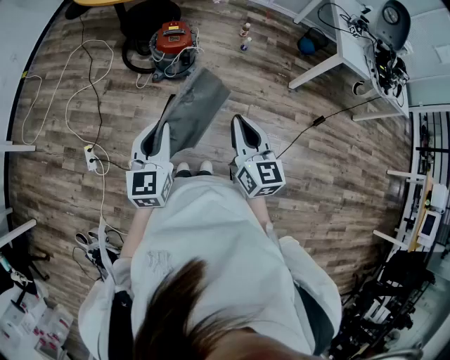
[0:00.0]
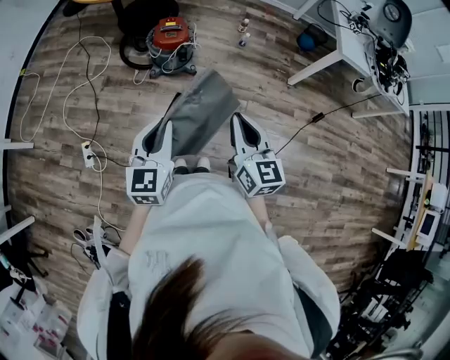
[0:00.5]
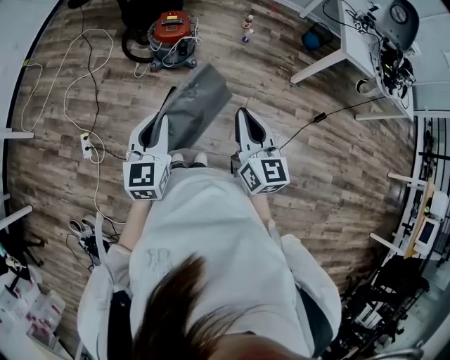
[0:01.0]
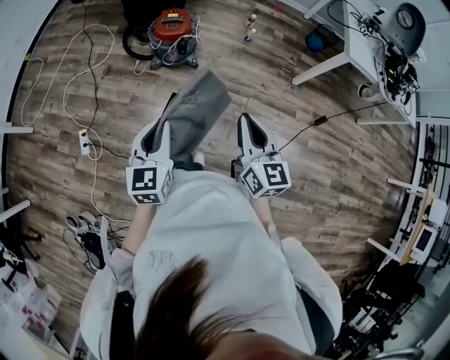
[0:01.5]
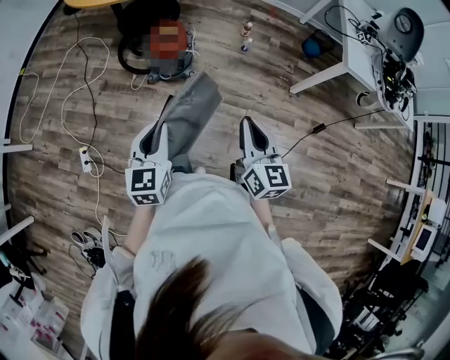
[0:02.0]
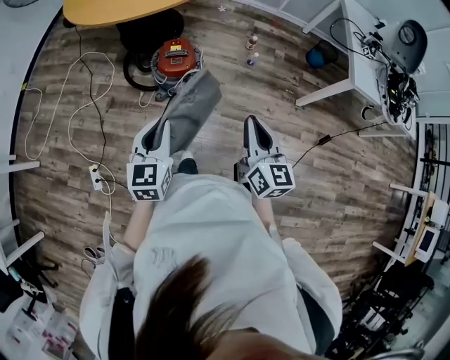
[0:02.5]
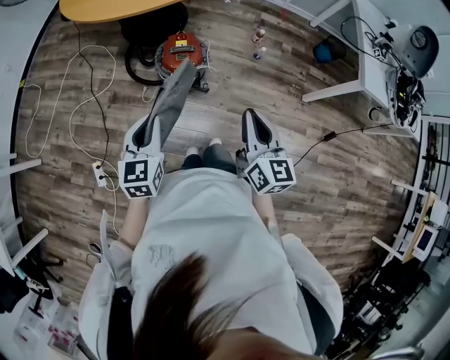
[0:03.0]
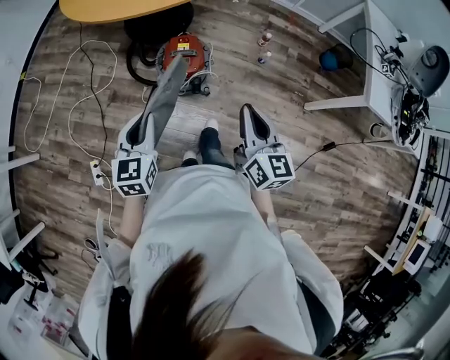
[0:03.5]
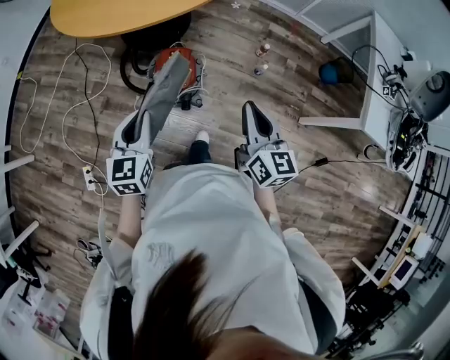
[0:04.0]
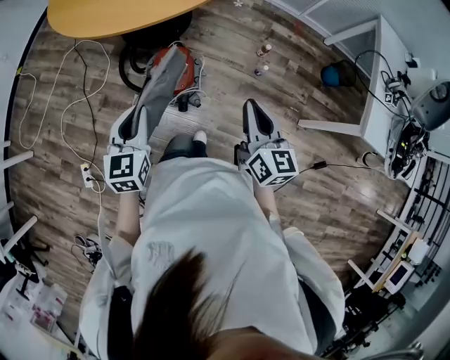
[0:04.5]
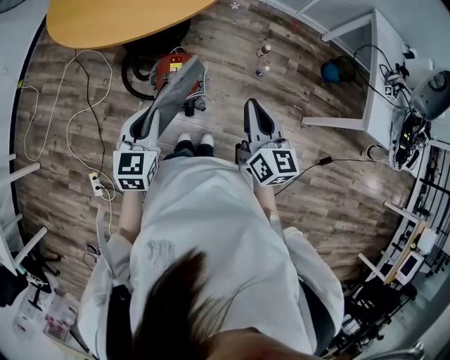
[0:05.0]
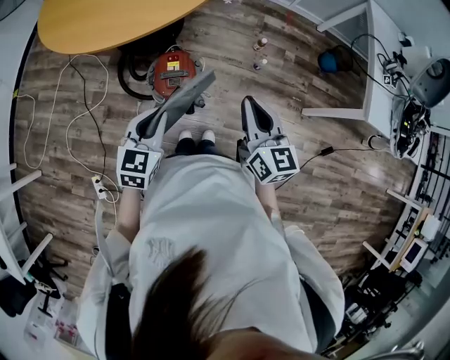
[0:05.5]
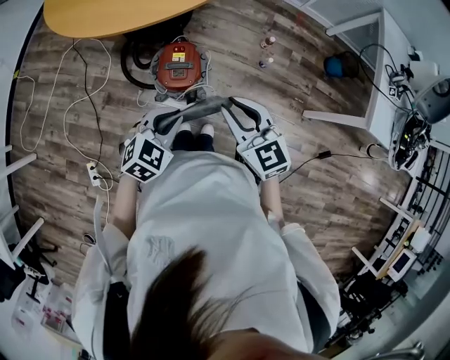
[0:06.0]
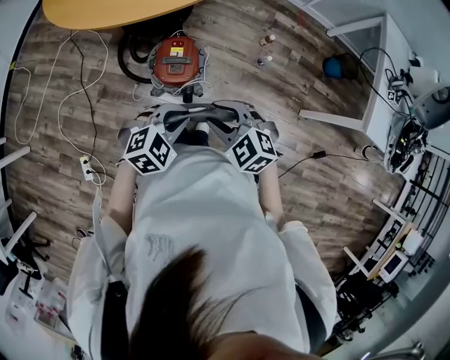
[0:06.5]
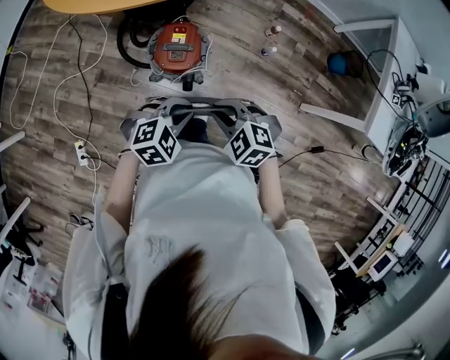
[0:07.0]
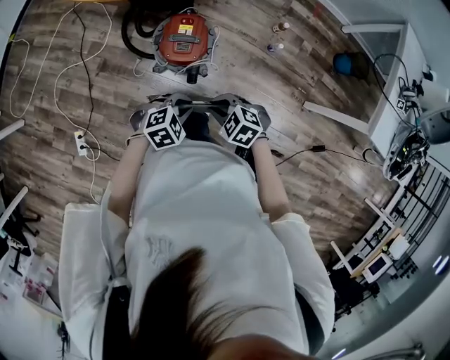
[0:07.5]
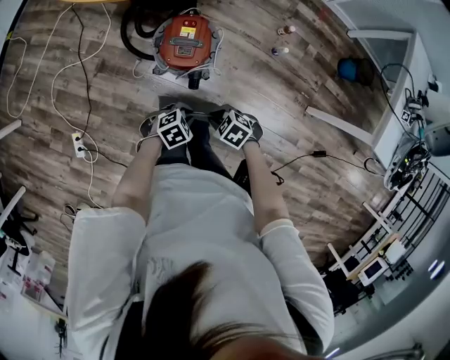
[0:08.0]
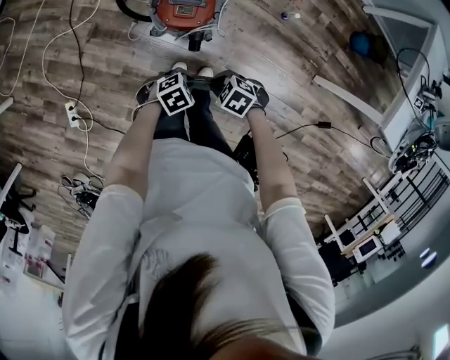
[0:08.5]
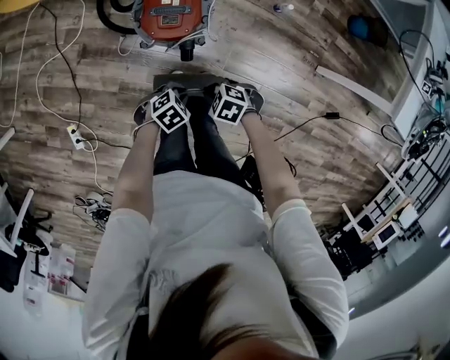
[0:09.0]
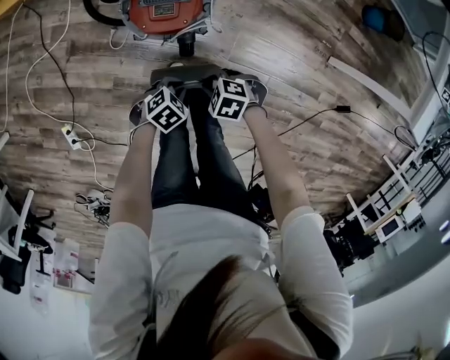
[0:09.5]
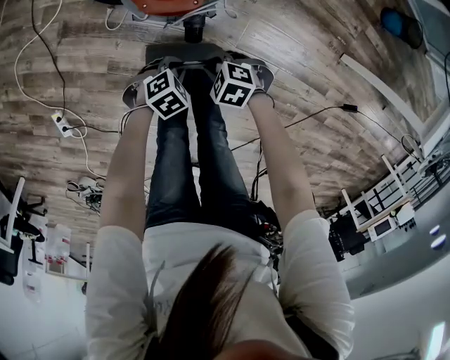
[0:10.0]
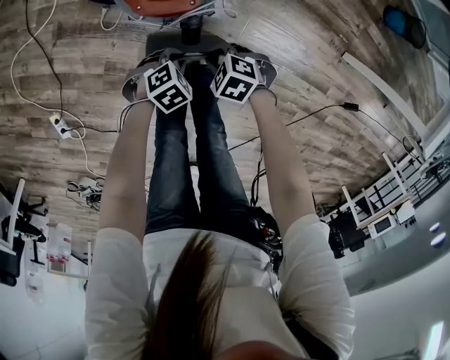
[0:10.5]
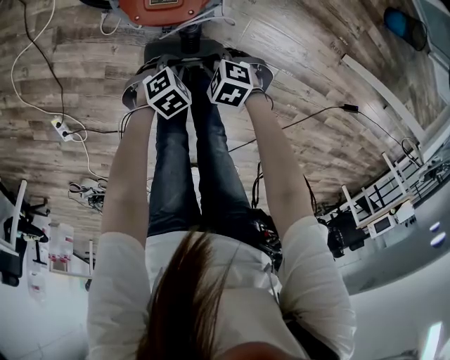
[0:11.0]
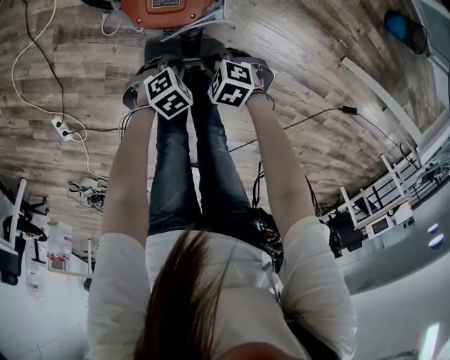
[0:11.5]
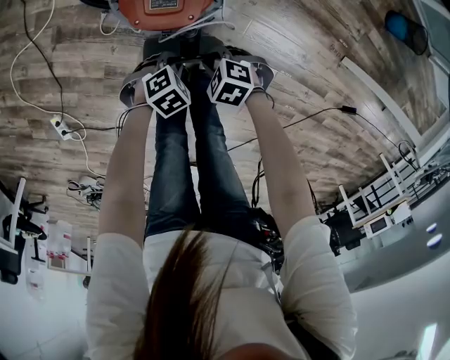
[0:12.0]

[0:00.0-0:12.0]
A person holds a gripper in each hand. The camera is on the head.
0:00.0 to 0:02.0: The grippers both shift forward and to the right by about 10 cm.
0:02.0 to 0:04.0: The two grippers go about 35 cm forward.
0:04.0 to 0:06.0: The left gripper heads to the right and downward, covering roughly 10 cm, and changes its angle by about 50 degrees. The right gripper travels to the left by about 10 cm, and swivels approximately 40 degrees.
0:06.0 to 0:08.0: The grippers both shift downward by roughly 30 cm. The left gripper rotates approximately 30 degrees, while the right gripper angles its fingers downward, by roughly 40 degrees.
0:08.0 to 0:10.0: Both grippers travel together downward, some 20 cm.
0:10.0 to 0:12.0: The right gripper ends up approximately 5 cm from where it was. The left gripper changes place by roughly 5 cm.

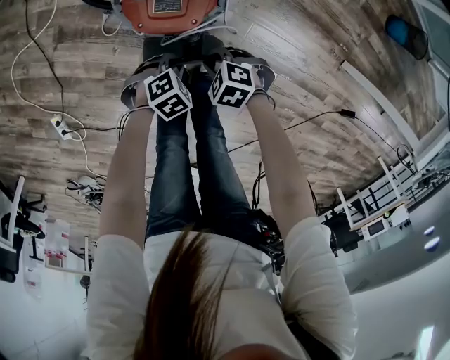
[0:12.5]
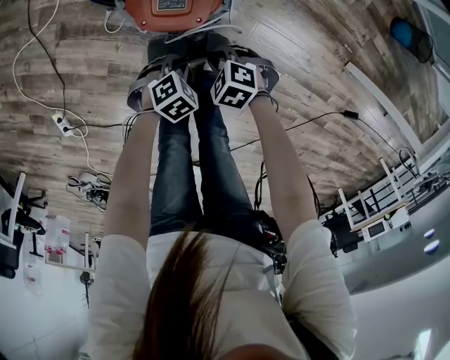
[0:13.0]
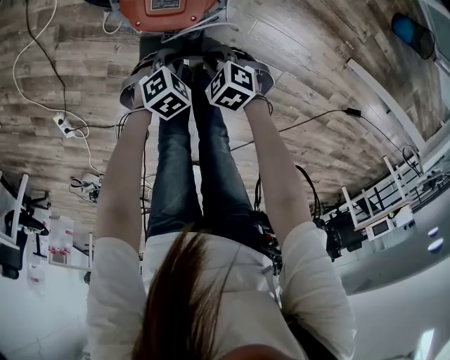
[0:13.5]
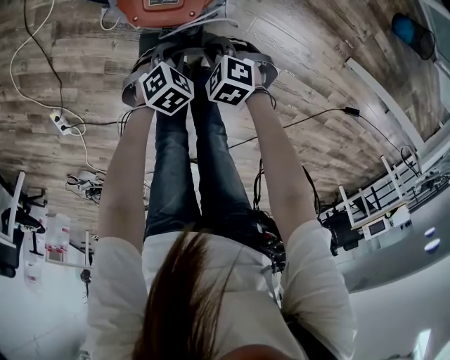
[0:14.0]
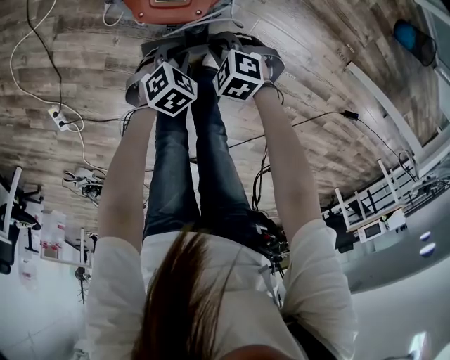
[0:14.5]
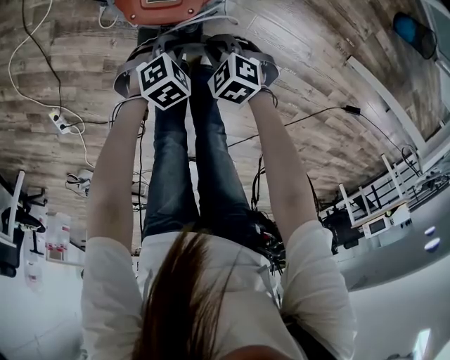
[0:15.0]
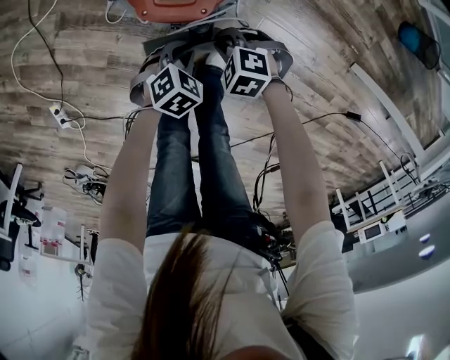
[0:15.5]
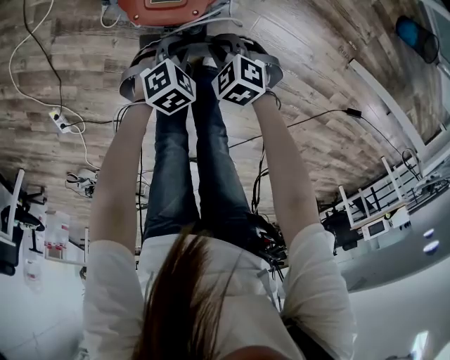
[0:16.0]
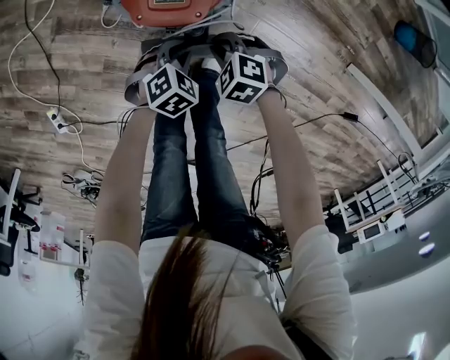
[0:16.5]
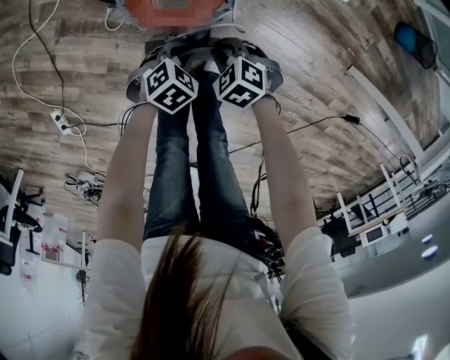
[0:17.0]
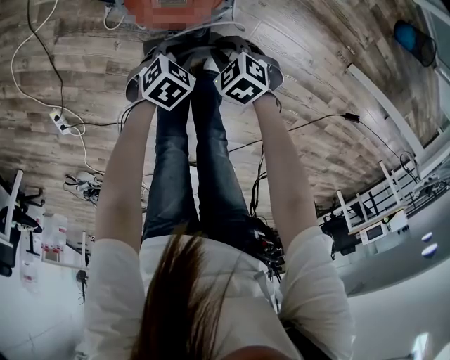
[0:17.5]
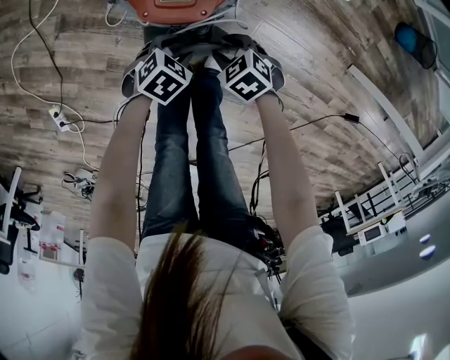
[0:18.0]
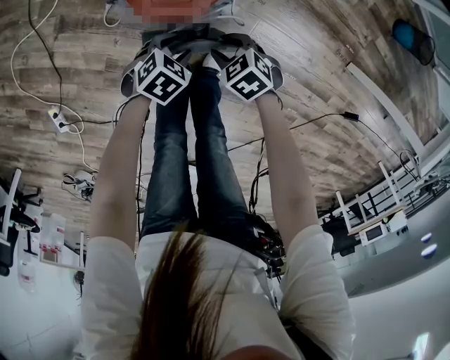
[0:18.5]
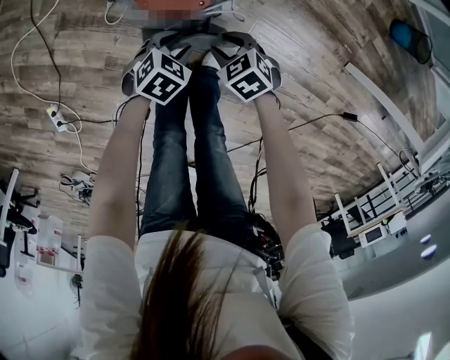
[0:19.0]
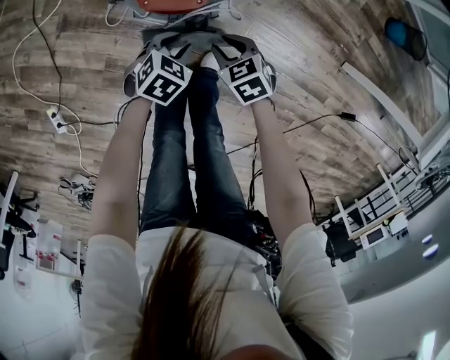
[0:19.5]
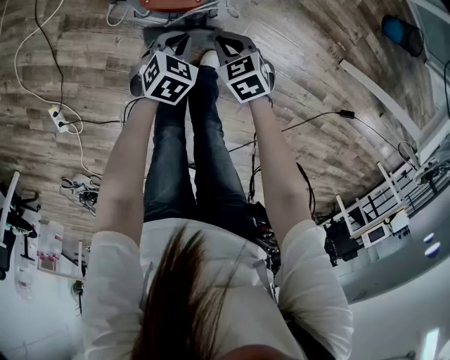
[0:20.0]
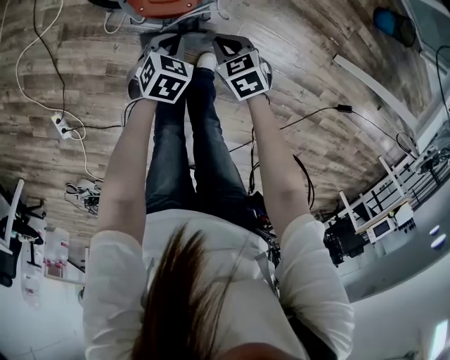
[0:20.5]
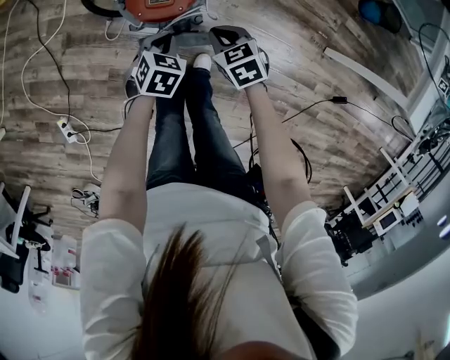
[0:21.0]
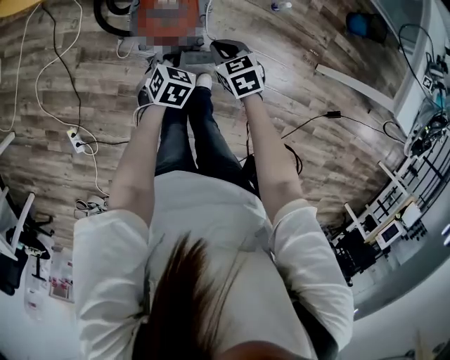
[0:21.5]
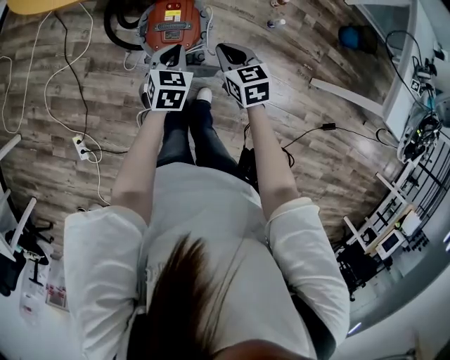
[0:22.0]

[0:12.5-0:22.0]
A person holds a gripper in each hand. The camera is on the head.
0:14.5 to 0:16.5: The grippers move only a little.
0:16.5 to 0:18.0: The right gripper changes its angle by about 20 degrees, and opens its fingers, while the left gripper opens its fingers.
0:18.0 to 0:20.0: Both grippers move upward, roughly 5 cm. The right gripper closes; the left gripper closes.
0:20.0 to 0:22.0: The two grippers go approximately 25 cm upward. The left gripper changes its angle by about 20 degrees. The right gripper turns by about 30 degrees.

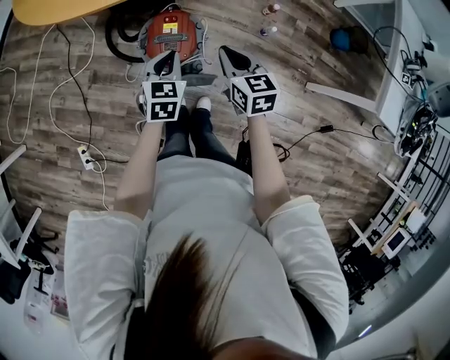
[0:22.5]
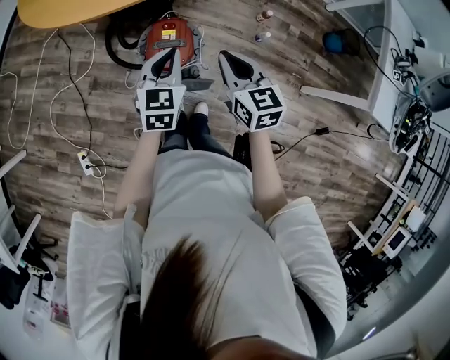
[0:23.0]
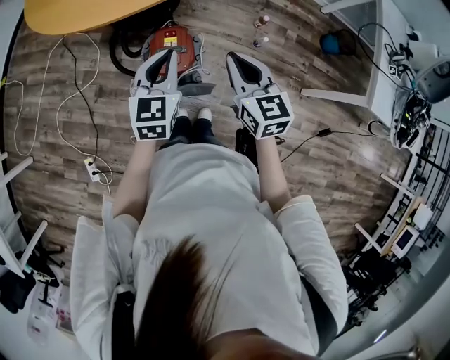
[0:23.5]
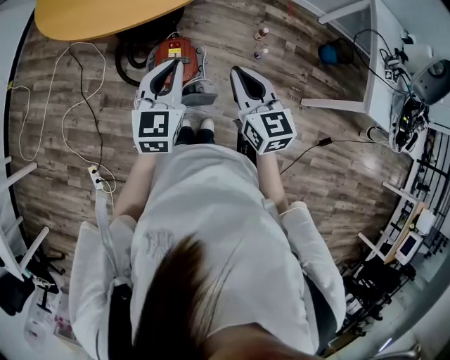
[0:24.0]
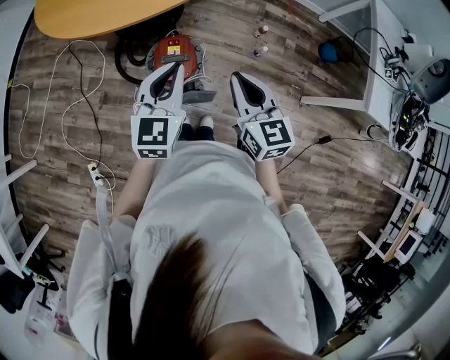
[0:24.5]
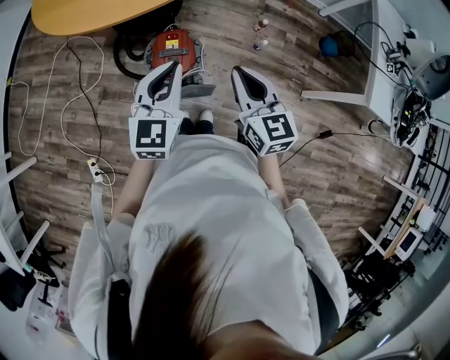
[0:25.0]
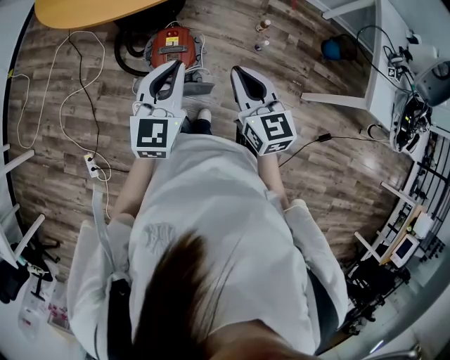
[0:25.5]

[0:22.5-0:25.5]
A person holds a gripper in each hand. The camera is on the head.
0:22.5 to 0:24.0: Both grippers travel together upward, about 20 cm. The left gripper turns by some 20 degrees.
0:24.0 to 0:25.5: The left gripper moves approximately 5 cm.

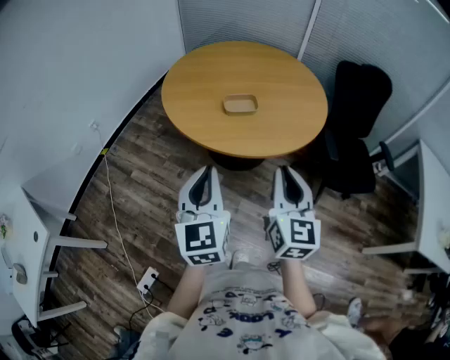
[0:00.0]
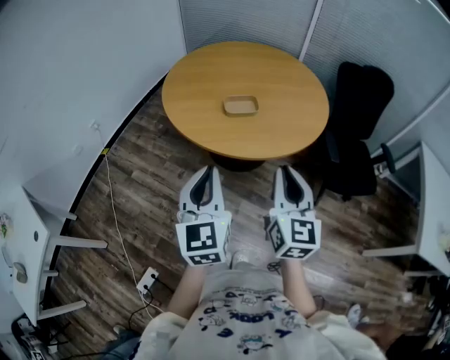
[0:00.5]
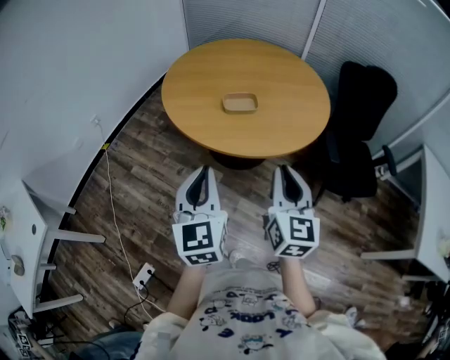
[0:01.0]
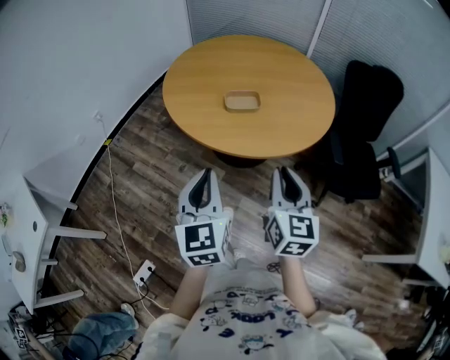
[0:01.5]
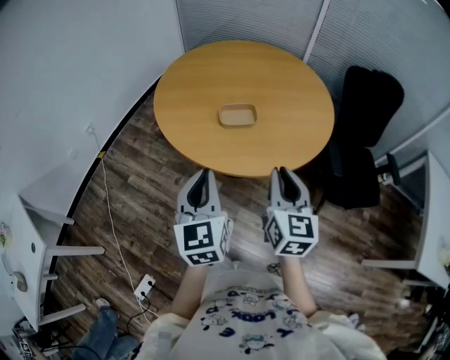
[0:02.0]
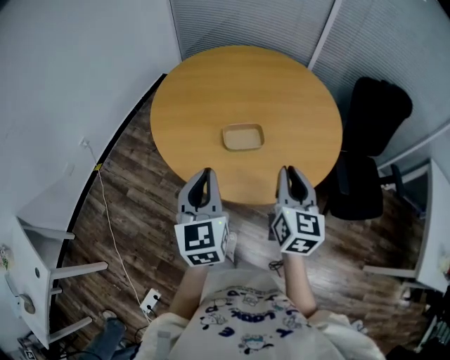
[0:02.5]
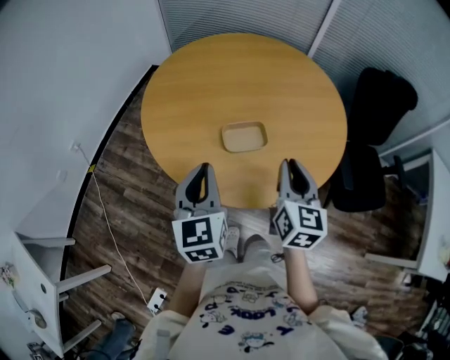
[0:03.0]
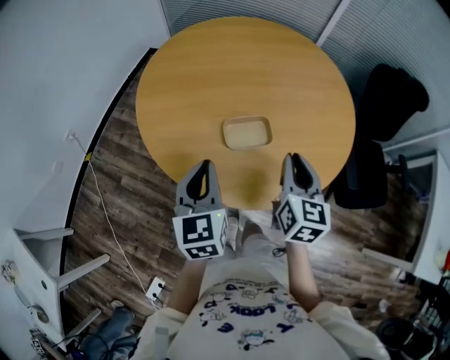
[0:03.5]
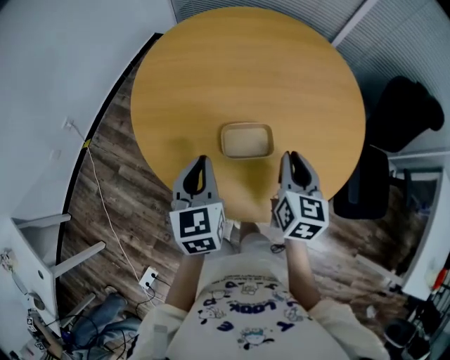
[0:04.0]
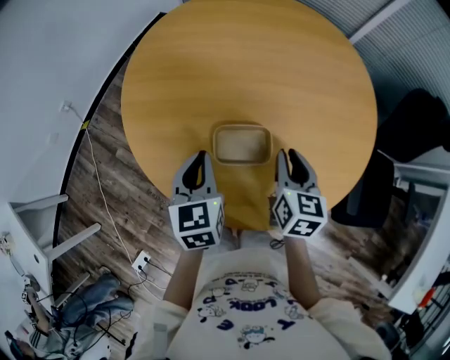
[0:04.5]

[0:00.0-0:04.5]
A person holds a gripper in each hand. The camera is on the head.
0:00.0 to 0:02.0: Both grippers travel together forward, some 10 cm.
0:02.0 to 0:04.5: Both grippers move forward and downward, approximately 35 cm. The left gripper rotates roughly 20 degrees. Meanwhile the right gripper rotates roughly 20 degrees.
